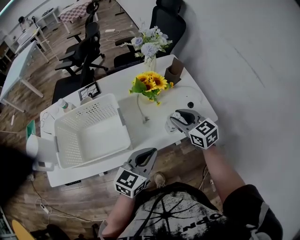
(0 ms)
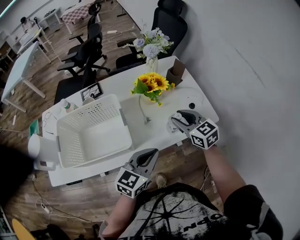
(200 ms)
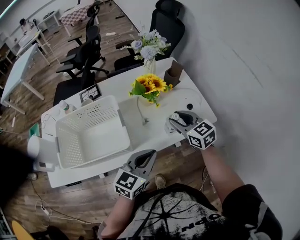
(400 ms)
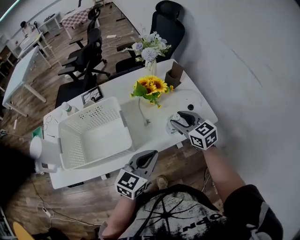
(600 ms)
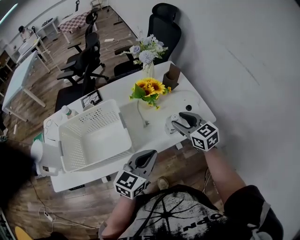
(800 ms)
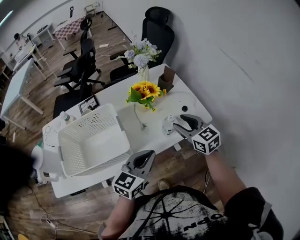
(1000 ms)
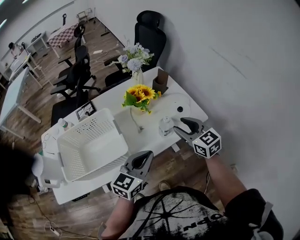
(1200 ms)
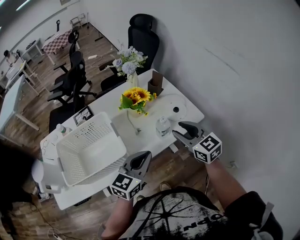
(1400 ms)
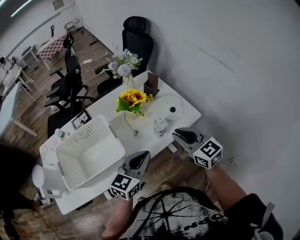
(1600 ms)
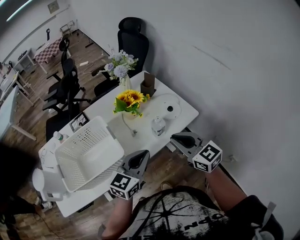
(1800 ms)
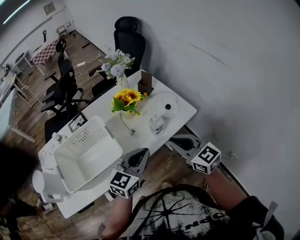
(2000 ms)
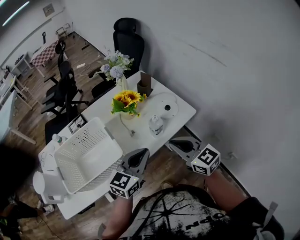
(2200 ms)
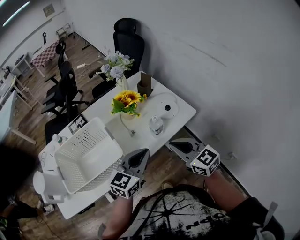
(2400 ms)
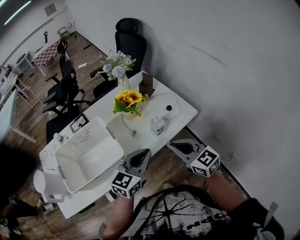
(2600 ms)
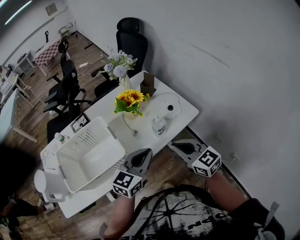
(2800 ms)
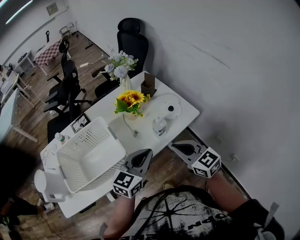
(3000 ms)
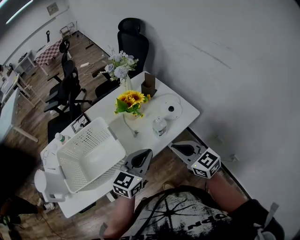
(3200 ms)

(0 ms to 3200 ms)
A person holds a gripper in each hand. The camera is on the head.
0 ms - 1600 ms: The right gripper heads backward and upward, covering about 15 cm.
1600 ms - 3200 ms: The right gripper moves backward, approximately 5 cm.

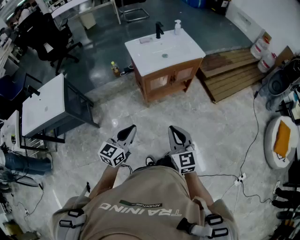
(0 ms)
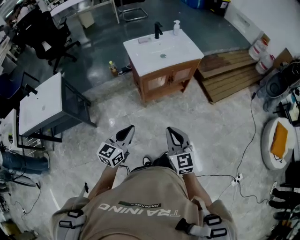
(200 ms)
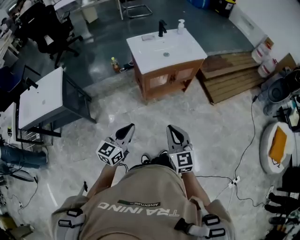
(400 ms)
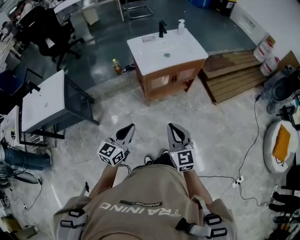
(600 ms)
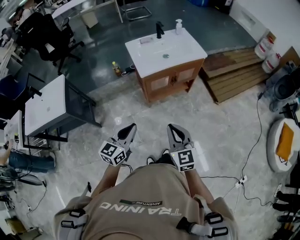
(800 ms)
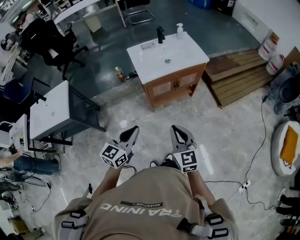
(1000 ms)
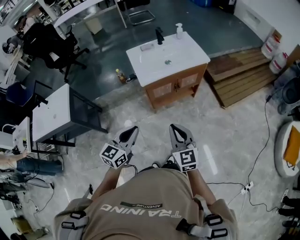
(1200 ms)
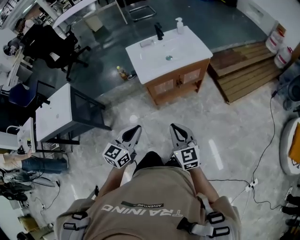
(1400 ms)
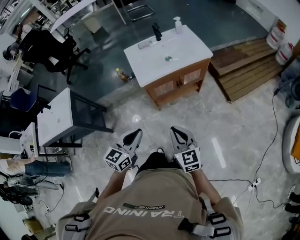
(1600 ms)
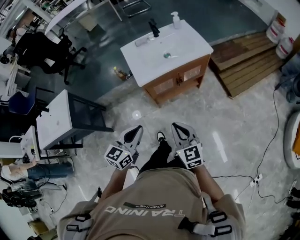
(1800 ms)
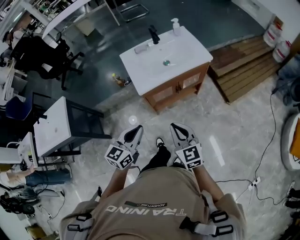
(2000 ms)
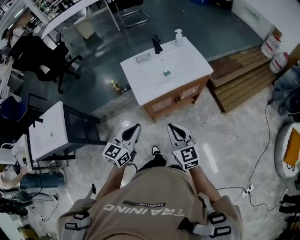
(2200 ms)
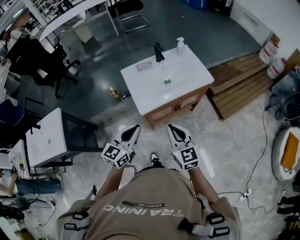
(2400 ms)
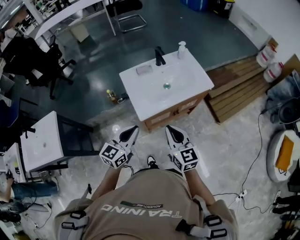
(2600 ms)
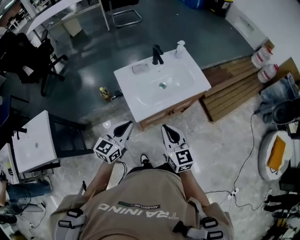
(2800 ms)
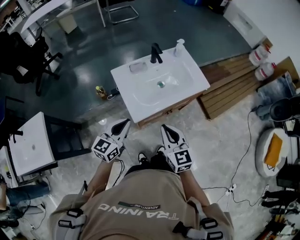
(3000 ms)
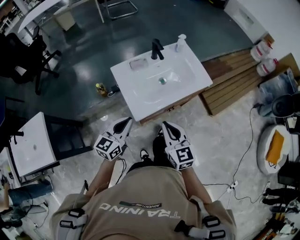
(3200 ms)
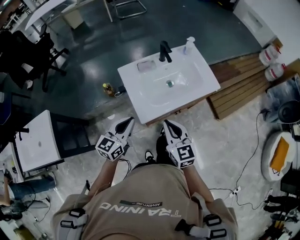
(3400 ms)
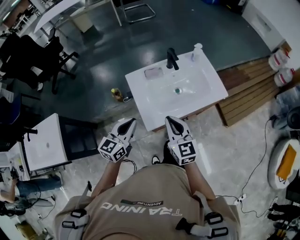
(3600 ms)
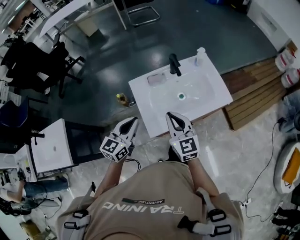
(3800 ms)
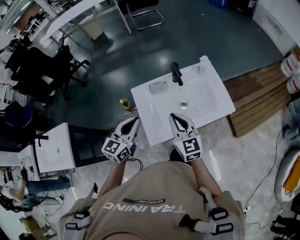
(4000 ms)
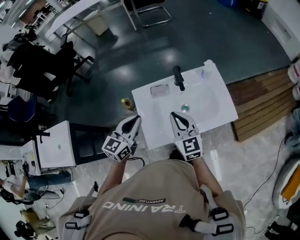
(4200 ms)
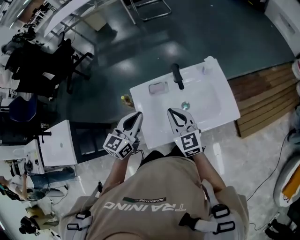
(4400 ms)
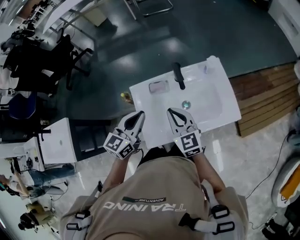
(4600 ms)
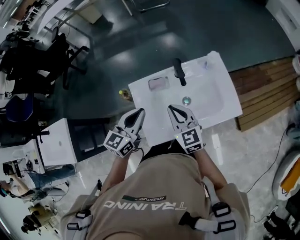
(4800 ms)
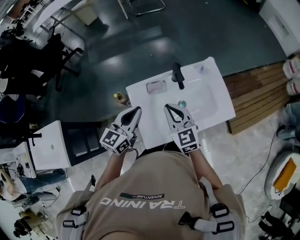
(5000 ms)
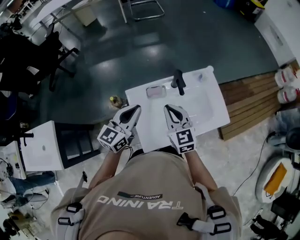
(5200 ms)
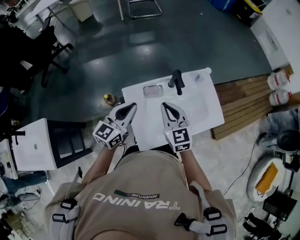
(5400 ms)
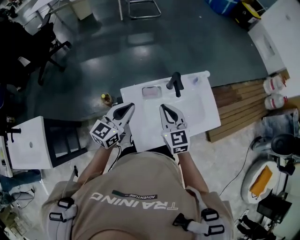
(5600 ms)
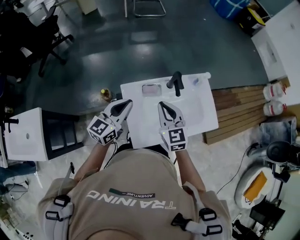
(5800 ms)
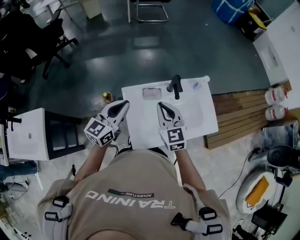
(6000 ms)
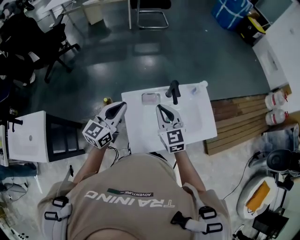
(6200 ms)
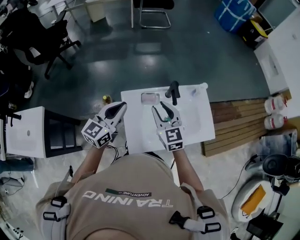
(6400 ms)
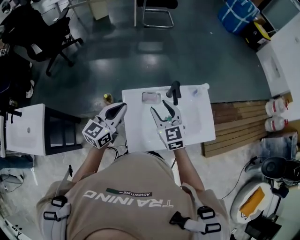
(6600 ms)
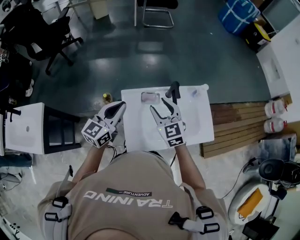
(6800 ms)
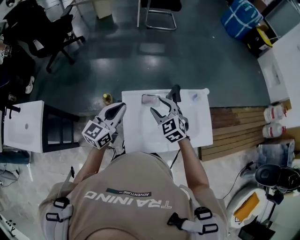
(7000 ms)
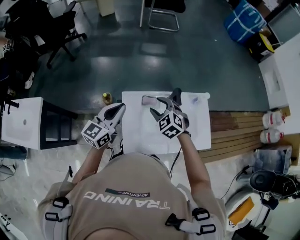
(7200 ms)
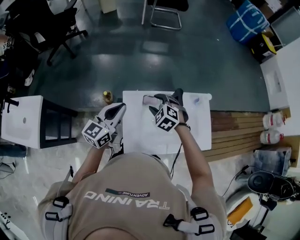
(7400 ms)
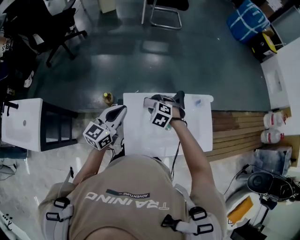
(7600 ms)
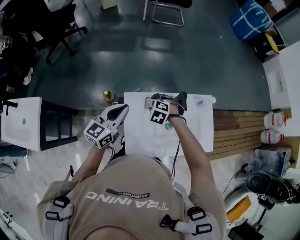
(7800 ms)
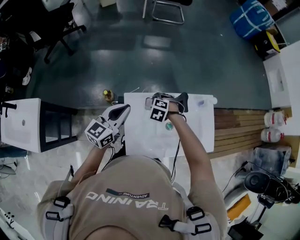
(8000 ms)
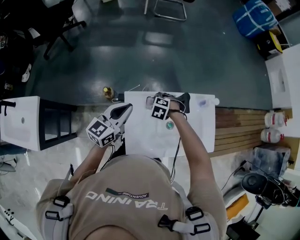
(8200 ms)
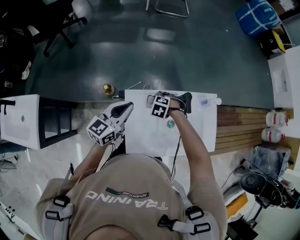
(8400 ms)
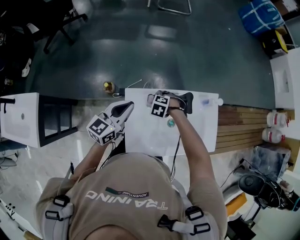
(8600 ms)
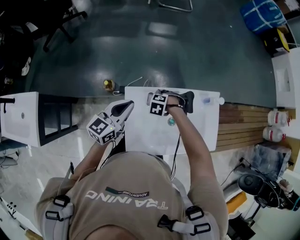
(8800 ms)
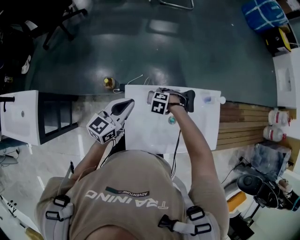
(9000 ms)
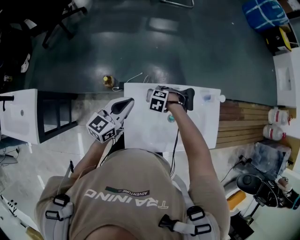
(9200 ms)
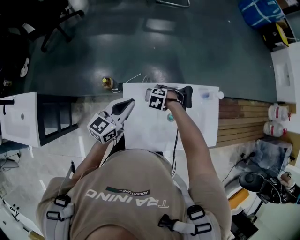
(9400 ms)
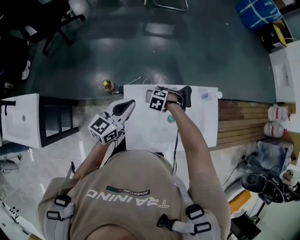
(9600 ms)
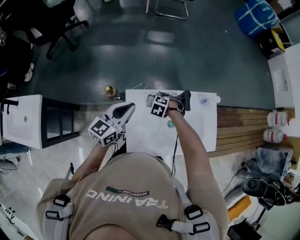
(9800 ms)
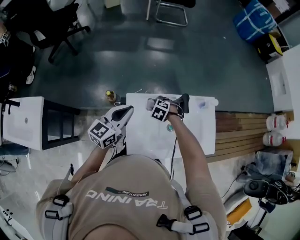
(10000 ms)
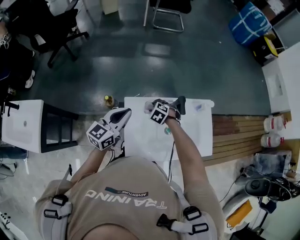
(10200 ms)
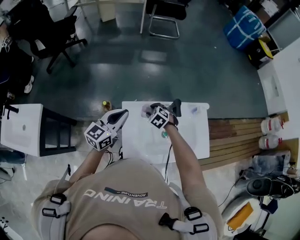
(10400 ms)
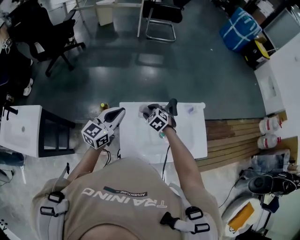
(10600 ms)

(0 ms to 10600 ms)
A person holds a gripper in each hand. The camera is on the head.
0 ms - 1600 ms: The left gripper travels forward and to the right by approximately 10 cm. The right gripper shifts approximately 10 cm forward.
1600 ms - 3000 ms: The left gripper shifts some 30 cm forward, while the right gripper heads forward and to the left, covering approximately 30 cm.
3000 ms - 4600 ms: Both grippers move forward, some 25 cm.
4600 ms - 6000 ms: The two grippers go some 10 cm to the left.
6000 ms - 7600 ms: The right gripper shifts approximately 15 cm downward and forward, points its fingers some 50 degrees further downward, and opens its fingers.
7600 ms - 9000 ms: The left gripper ends up some 5 cm from where it was, while the right gripper goes approximately 10 cm downward, and changes its angle by approximately 20 degrees.
9000 ms - 10600 ms: Both grippers travel together upward, about 10 cm. The right gripper swivels approximately 40 degrees.

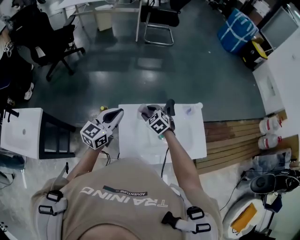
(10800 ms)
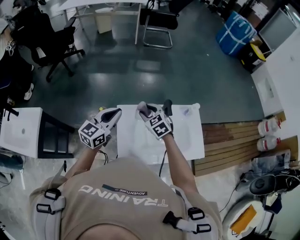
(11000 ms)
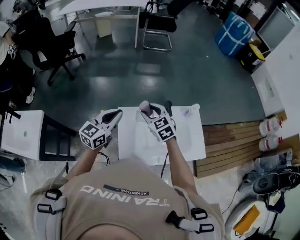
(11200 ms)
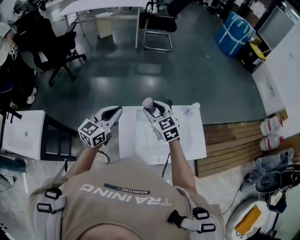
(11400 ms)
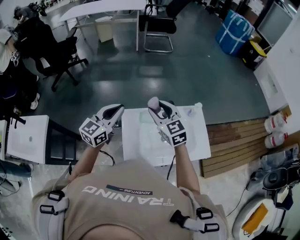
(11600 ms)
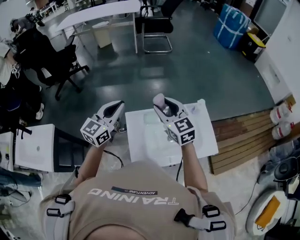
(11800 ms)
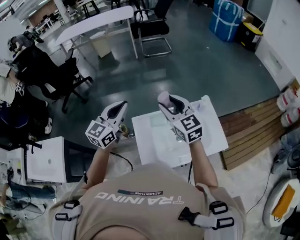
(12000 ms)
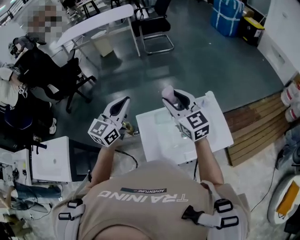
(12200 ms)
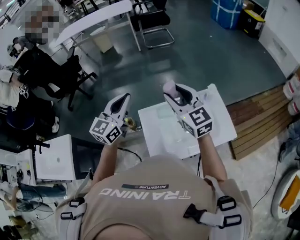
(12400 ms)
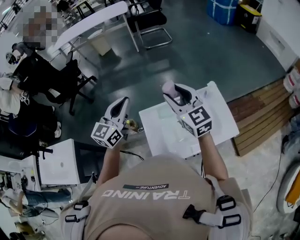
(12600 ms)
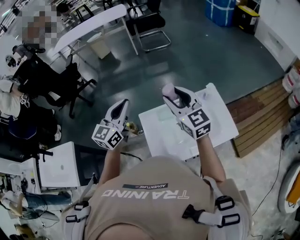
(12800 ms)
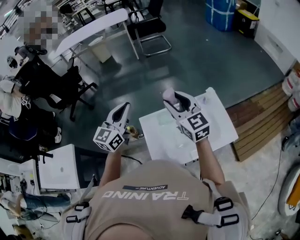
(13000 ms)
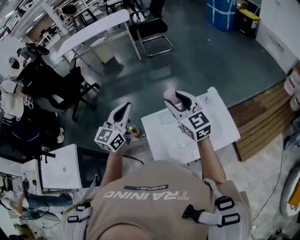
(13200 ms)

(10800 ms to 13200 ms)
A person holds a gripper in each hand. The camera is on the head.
10800 ms - 12000 ms: The right gripper travels upward by roughly 25 cm, and tips its fingers upward by some 40 degrees; the left gripper is displaced upward by approximately 10 cm.
12000 ms - 13200 ms: There are only small adjustments of the grippers.

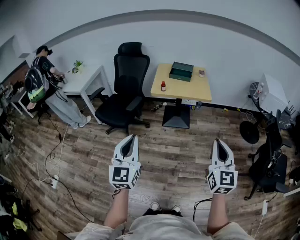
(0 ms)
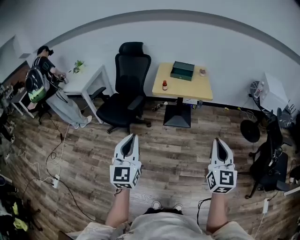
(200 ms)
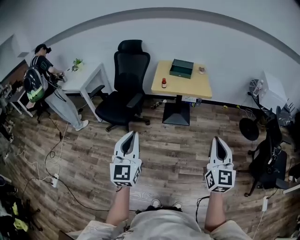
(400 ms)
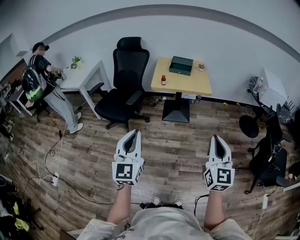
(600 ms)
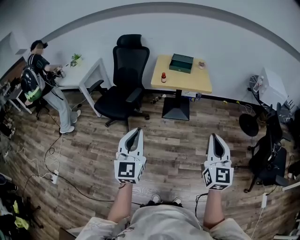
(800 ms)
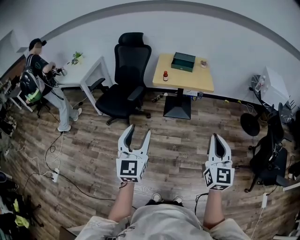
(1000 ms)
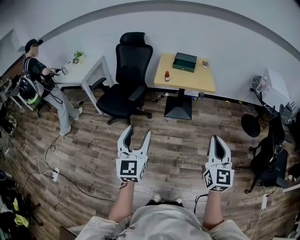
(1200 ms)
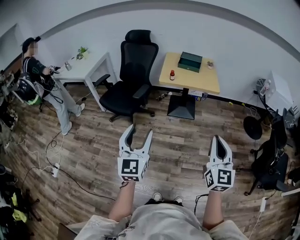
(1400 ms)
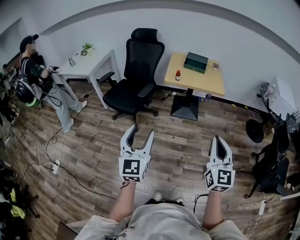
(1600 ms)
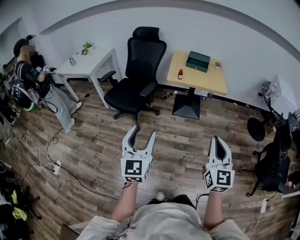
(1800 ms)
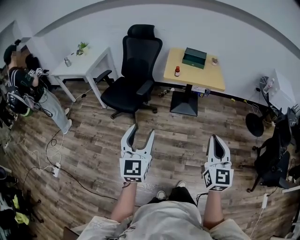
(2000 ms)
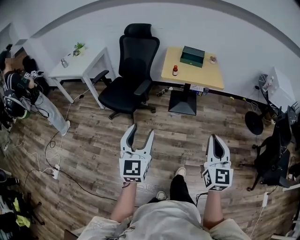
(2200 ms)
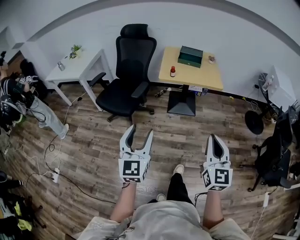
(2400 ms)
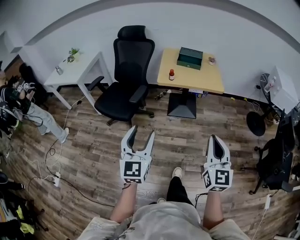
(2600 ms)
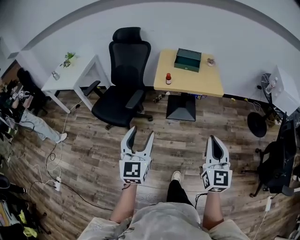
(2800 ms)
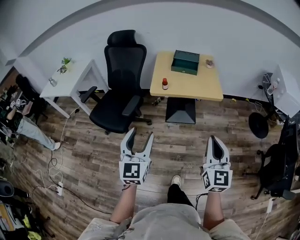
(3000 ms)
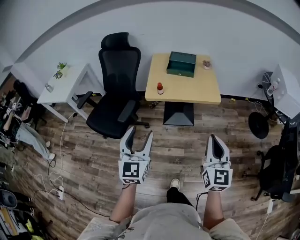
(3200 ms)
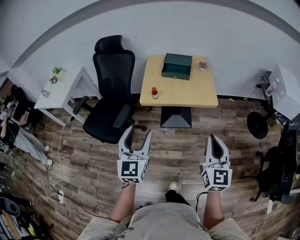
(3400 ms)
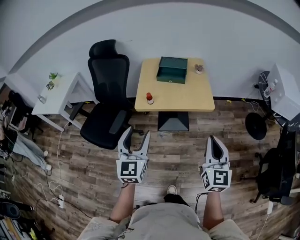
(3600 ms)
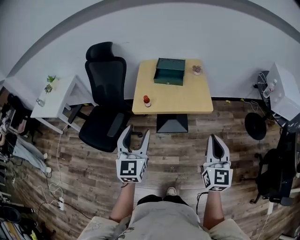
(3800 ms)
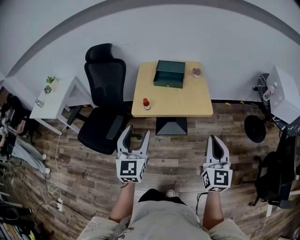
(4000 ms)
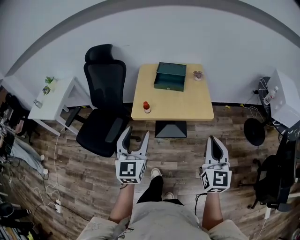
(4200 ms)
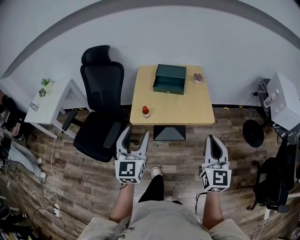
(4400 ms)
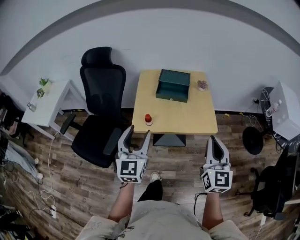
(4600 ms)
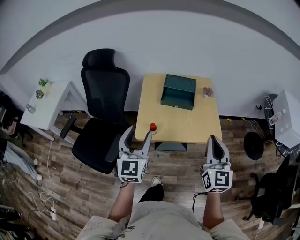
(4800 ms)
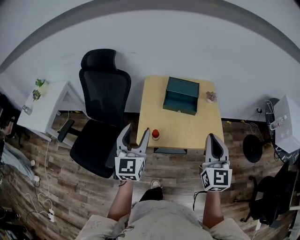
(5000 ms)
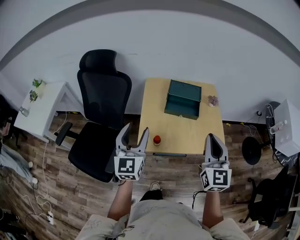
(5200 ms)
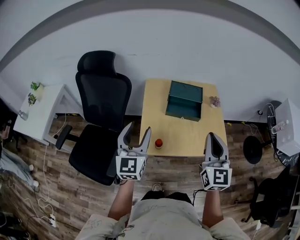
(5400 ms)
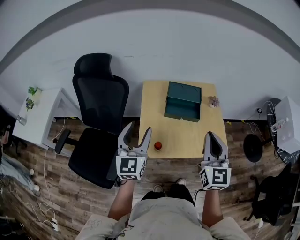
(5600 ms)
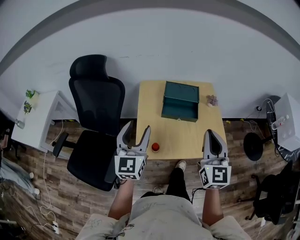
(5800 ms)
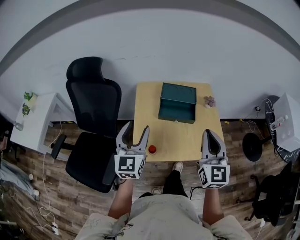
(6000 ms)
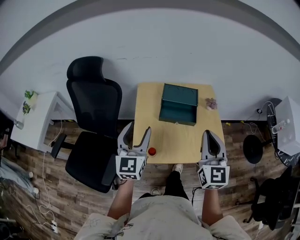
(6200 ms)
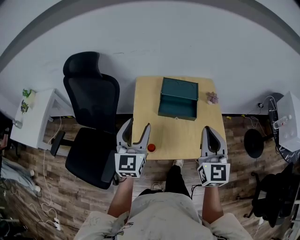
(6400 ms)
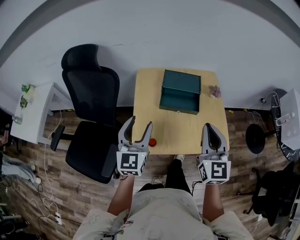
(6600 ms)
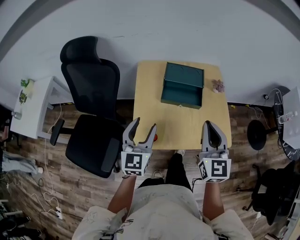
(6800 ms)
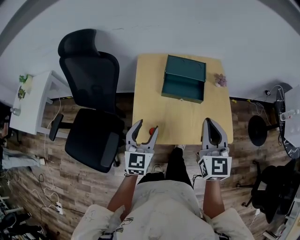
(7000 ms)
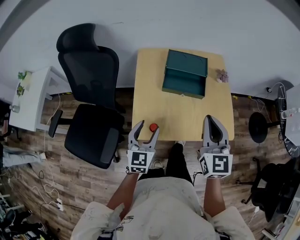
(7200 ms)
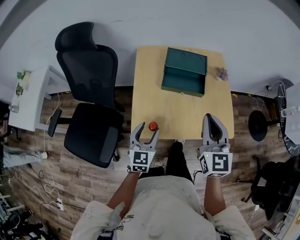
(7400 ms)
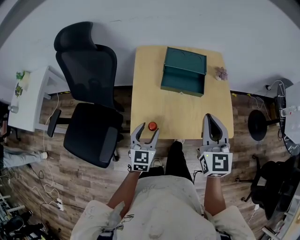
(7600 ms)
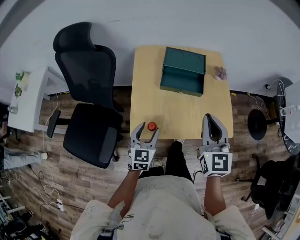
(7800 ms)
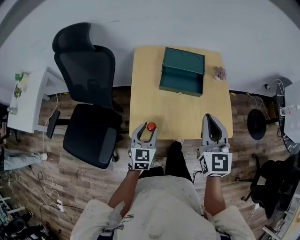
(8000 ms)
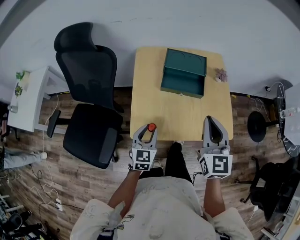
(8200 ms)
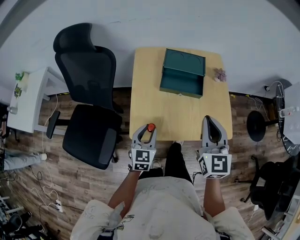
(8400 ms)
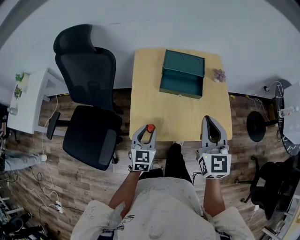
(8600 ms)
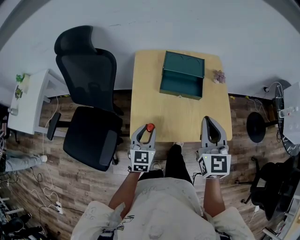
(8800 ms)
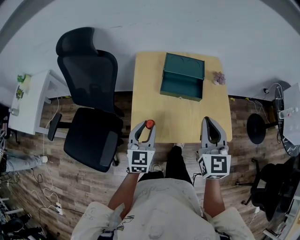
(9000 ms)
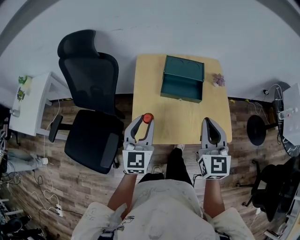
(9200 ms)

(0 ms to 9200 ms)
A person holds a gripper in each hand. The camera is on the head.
0 ms - 1600 ms: The right gripper goes roughly 10 cm to the left. The left gripper heads to the left, covering roughly 5 cm, and opens up.
1600 ms - 3000 ms: Both grippers travel together forward, approximately 25 cm.
3000 ms - 4600 ms: Both grippers move forward, some 30 cm.
4600 ms - 6200 ms: The left gripper shifts about 25 cm forward; the right gripper moves forward and to the left, approximately 25 cm.
6200 ms - 7600 ms: The right gripper heads downward, covering roughly 5 cm. The left gripper goes roughly 20 cm downward, and turns by roughly 20 degrees.
7600 ms - 9200 ms: The left gripper goes about 15 cm upward, and closes its fingers.
